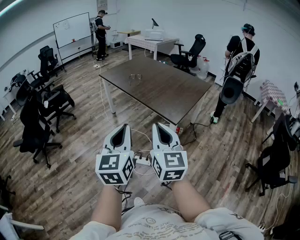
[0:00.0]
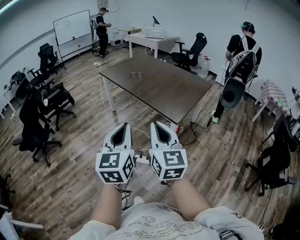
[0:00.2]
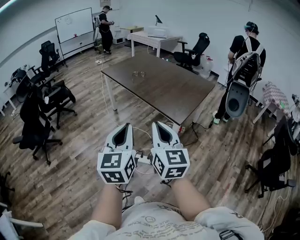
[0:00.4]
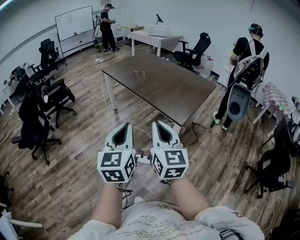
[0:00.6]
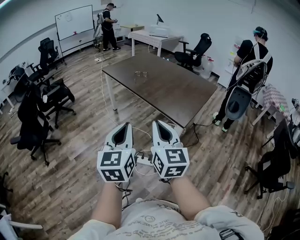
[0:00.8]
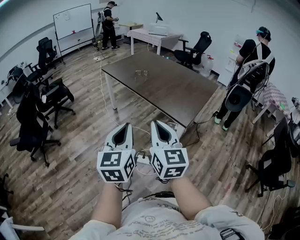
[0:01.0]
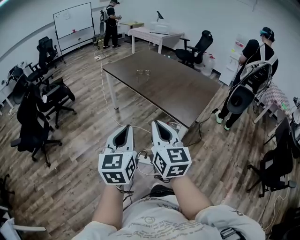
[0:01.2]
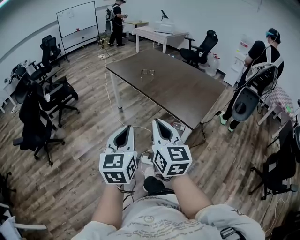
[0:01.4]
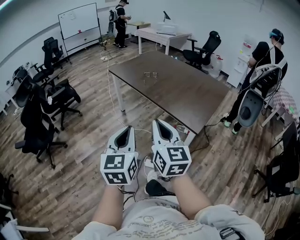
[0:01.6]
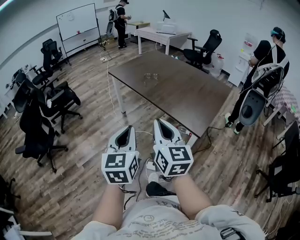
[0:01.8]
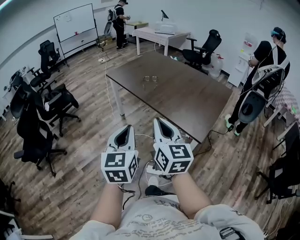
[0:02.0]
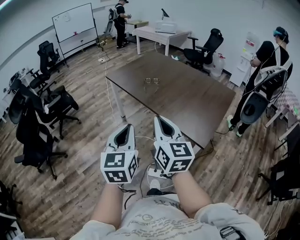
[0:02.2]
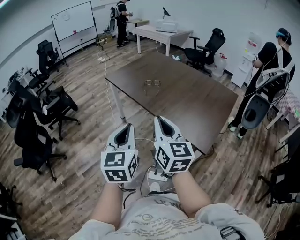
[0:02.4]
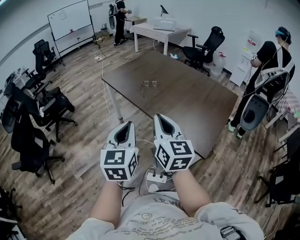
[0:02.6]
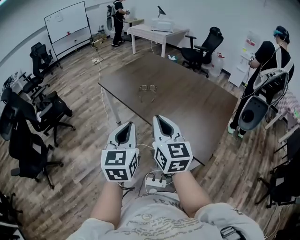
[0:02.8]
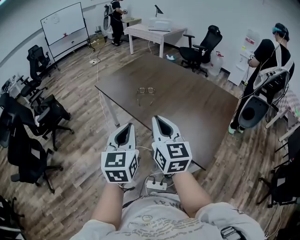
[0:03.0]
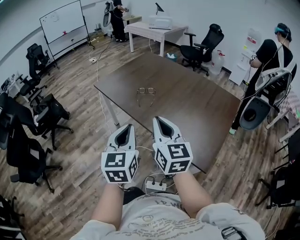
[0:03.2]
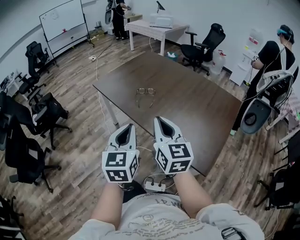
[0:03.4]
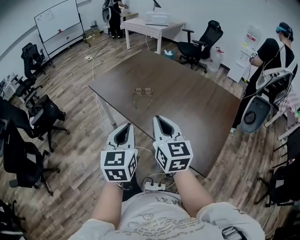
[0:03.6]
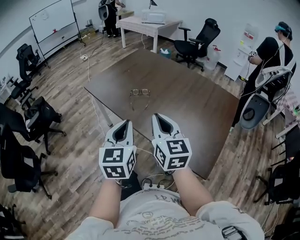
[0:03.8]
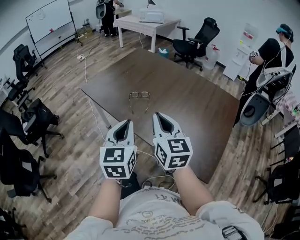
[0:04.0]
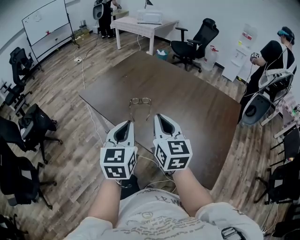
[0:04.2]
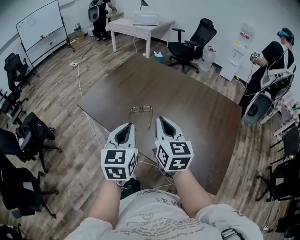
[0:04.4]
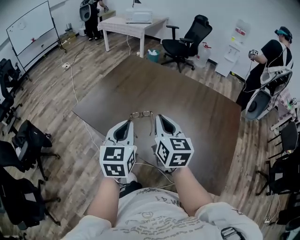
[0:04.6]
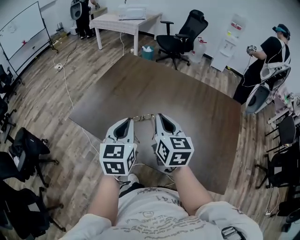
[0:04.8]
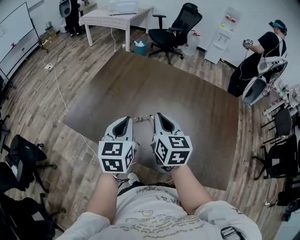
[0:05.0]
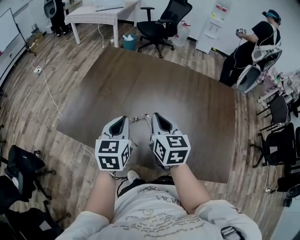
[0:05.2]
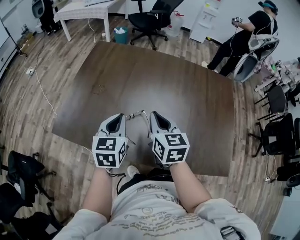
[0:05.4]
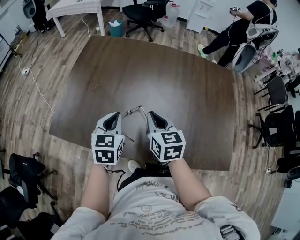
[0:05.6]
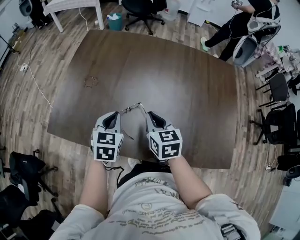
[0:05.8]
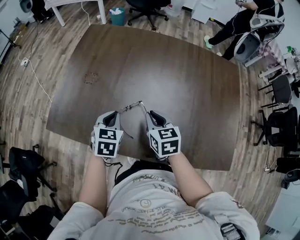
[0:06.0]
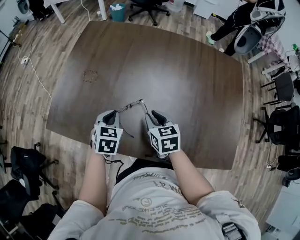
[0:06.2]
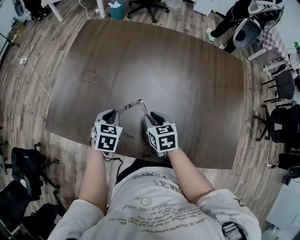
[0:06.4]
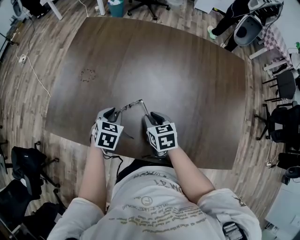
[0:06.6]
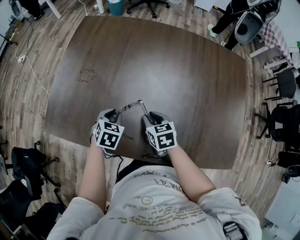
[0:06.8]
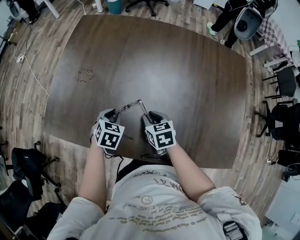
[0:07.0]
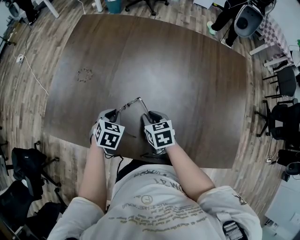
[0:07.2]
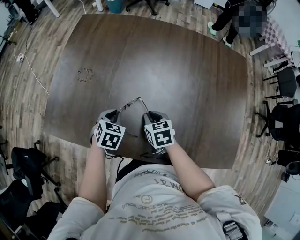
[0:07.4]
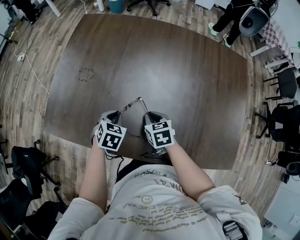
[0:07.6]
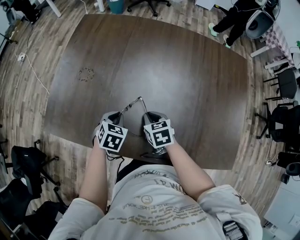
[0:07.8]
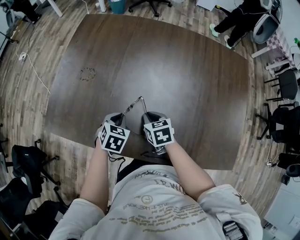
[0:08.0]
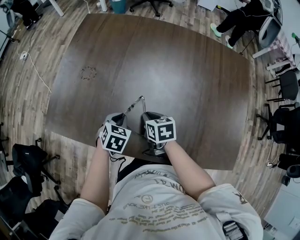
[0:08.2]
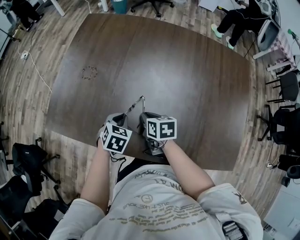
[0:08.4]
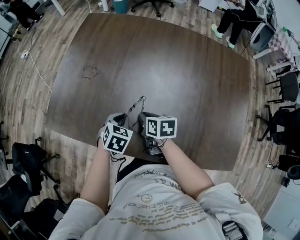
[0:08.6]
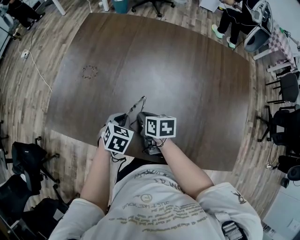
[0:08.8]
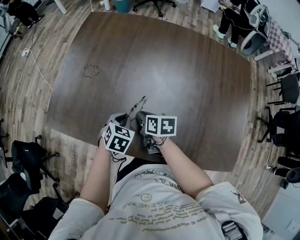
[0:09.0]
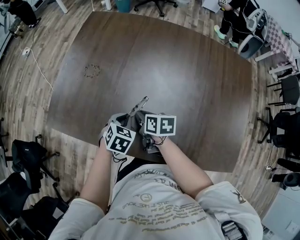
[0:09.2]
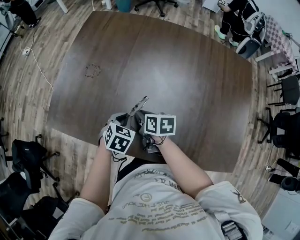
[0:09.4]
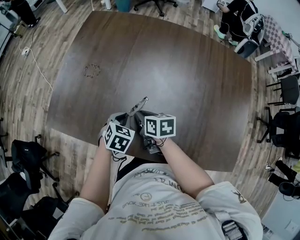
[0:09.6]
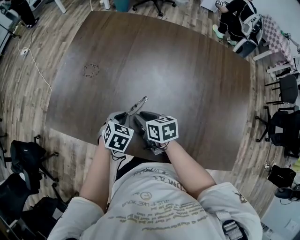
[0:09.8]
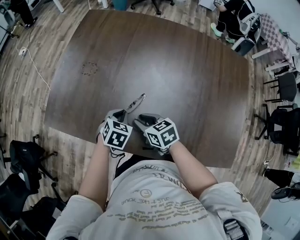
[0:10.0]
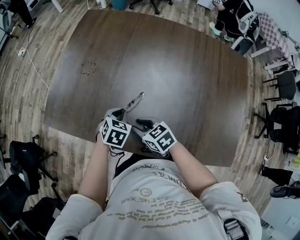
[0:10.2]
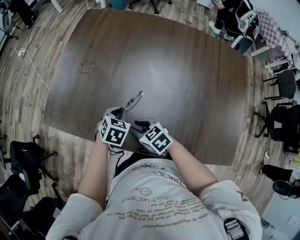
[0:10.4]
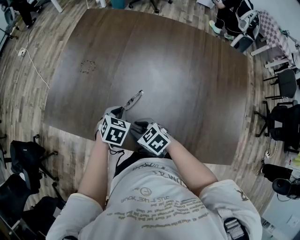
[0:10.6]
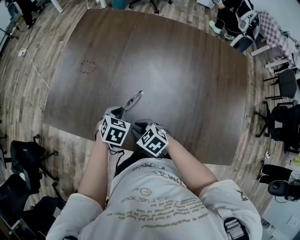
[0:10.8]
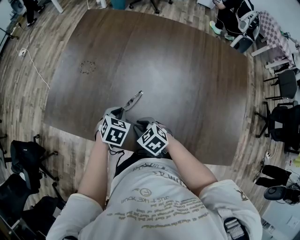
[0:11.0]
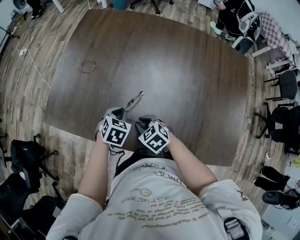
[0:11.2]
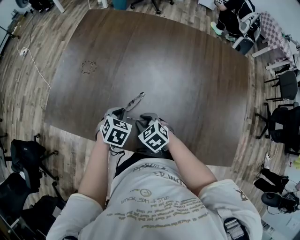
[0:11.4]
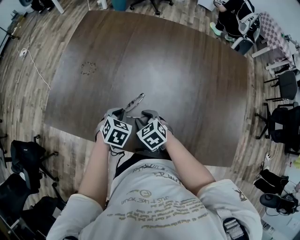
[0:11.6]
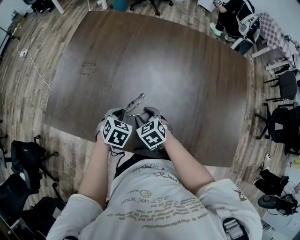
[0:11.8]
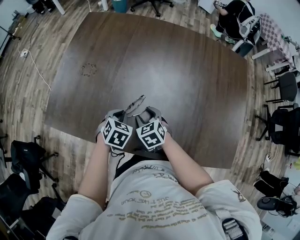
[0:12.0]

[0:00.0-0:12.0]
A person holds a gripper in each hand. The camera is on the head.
0:00.0 to 0:01.6: Both grippers travel together forward and to the left, some 20 cm.
0:01.6 to 0:03.0: The two grippers go roughly 35 cm forward.
0:03.0 to 0:04.4: The grippers both shift forward by approximately 25 cm.
0:04.4 to 0:06.0: The left gripper is displaced forward and downward by approximately 30 cm, and changes its angle by some 40 degrees. The right gripper shifts roughly 25 cm downward and forward, and turns by approximately 30 degrees.
0:06.0 to 0:07.6: The two grippers go about 10 cm downward.
0:07.6 to 0:09.0: The right gripper turns by roughly 30 degrees.
0:09.0 to 0:10.4: The right gripper shifts some 5 cm backward, rotates around the line of its fingers by about 40 degrees, counterclockwise from behind, and opens up.
0:10.4 to 0:12.0: The right gripper is displaced forward and to the right by about 10 cm, and rotates approximately 30 degrees.

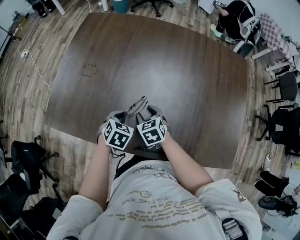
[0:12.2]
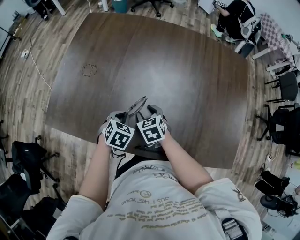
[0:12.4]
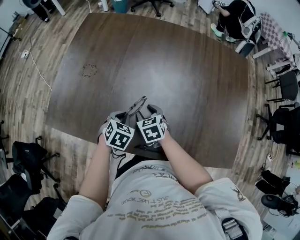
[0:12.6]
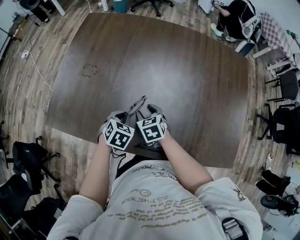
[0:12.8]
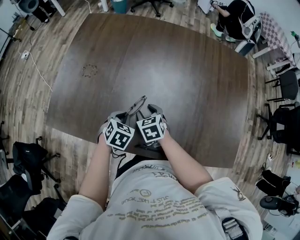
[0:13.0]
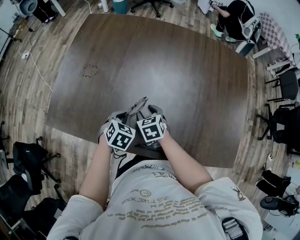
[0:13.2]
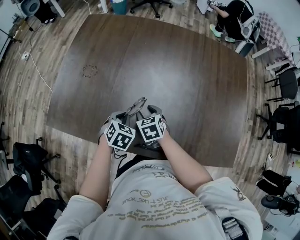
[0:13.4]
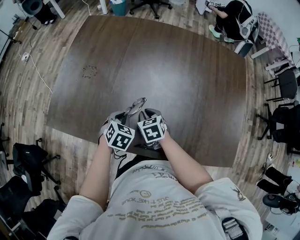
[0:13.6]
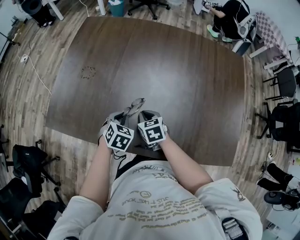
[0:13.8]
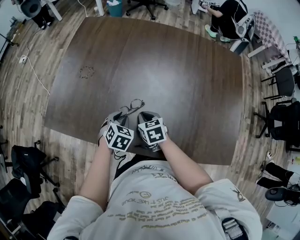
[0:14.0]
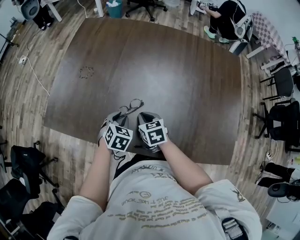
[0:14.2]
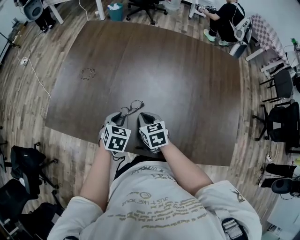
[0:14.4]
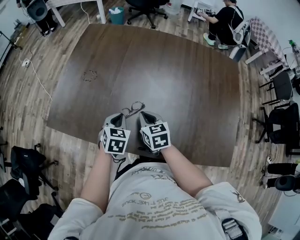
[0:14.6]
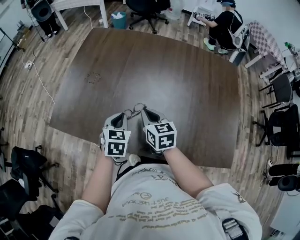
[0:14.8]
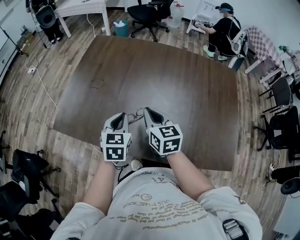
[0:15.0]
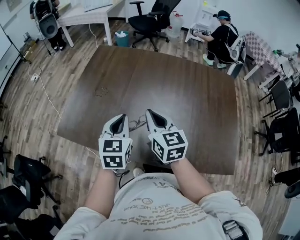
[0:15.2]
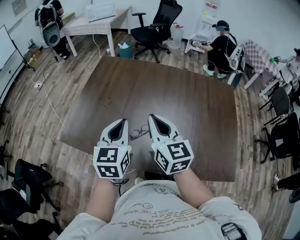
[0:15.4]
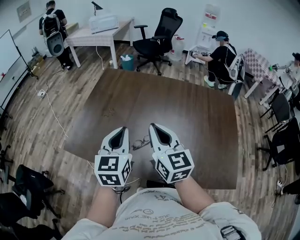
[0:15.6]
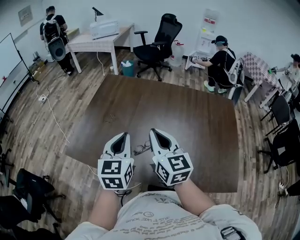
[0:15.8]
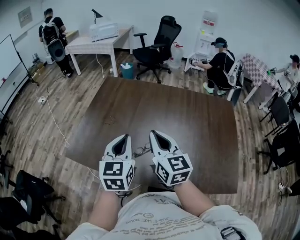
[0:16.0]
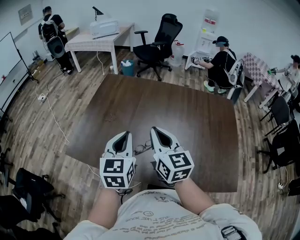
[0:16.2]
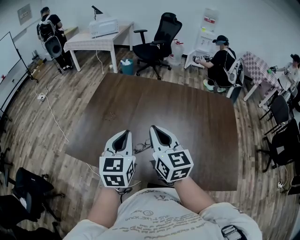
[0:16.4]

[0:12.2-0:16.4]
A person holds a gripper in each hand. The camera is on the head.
0:12.2 to 0:13.6: The right gripper closes up.
0:13.6 to 0:15.0: Both grippers travel together upward, about 15 cm. The left gripper rotates some 30 degrees, and opens, then closes again. Meanwhile the right gripper angles its fingers upward, by some 30 degrees.
0:15.0 to 0:16.4: Both grippers move upward, about 15 cm.

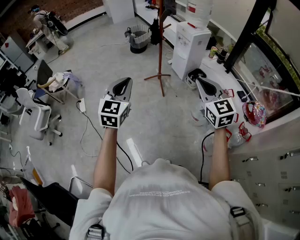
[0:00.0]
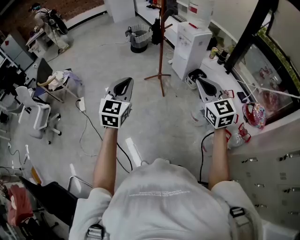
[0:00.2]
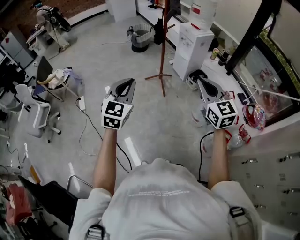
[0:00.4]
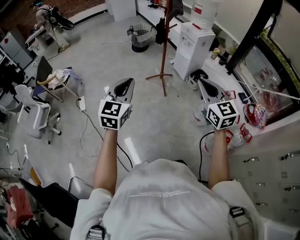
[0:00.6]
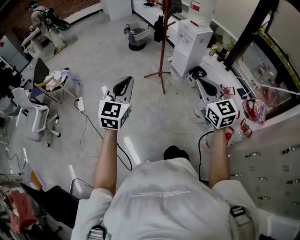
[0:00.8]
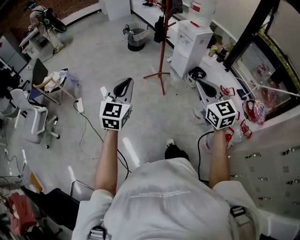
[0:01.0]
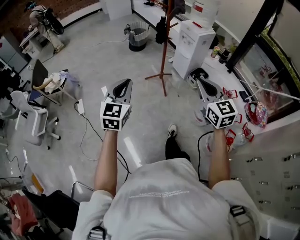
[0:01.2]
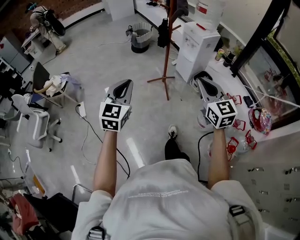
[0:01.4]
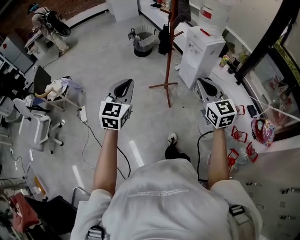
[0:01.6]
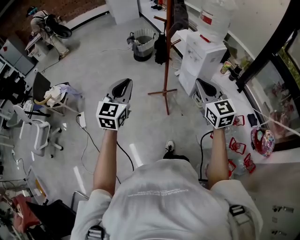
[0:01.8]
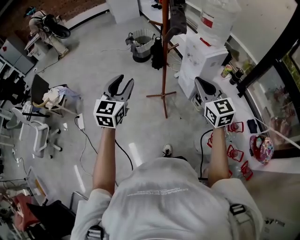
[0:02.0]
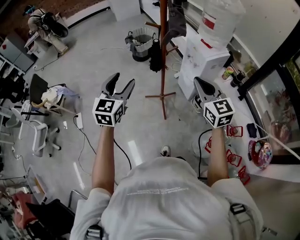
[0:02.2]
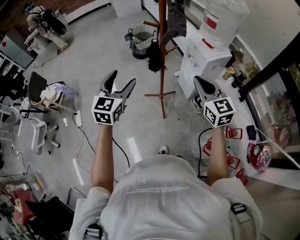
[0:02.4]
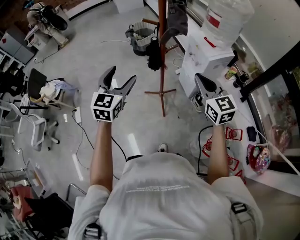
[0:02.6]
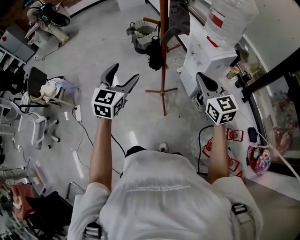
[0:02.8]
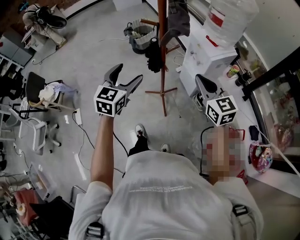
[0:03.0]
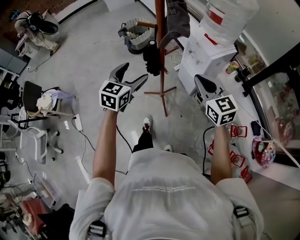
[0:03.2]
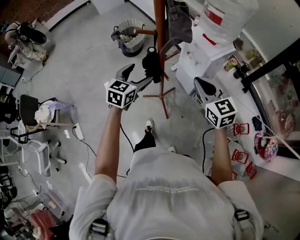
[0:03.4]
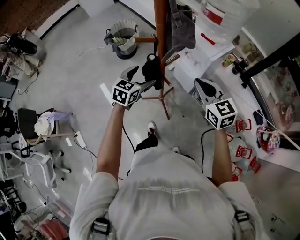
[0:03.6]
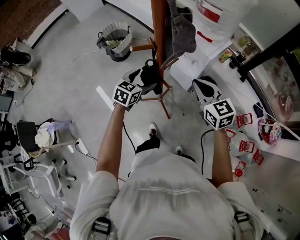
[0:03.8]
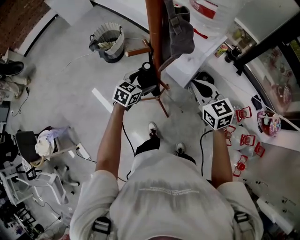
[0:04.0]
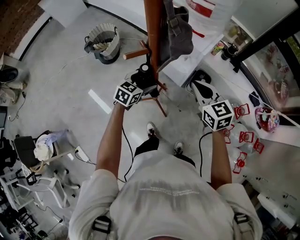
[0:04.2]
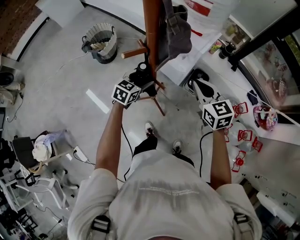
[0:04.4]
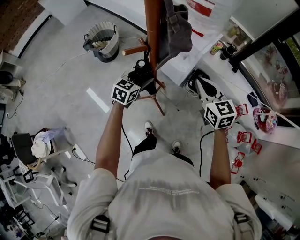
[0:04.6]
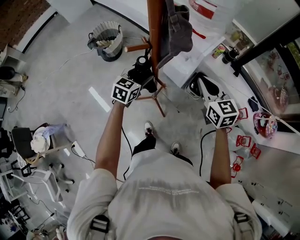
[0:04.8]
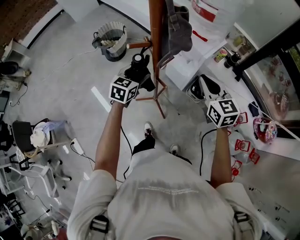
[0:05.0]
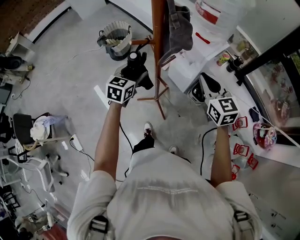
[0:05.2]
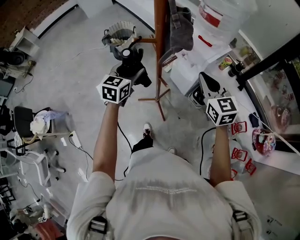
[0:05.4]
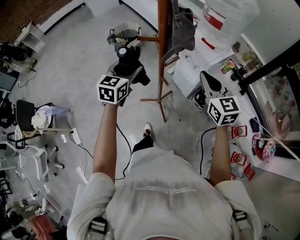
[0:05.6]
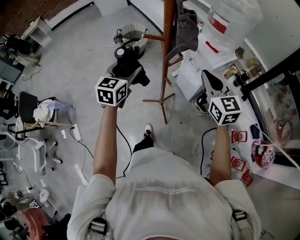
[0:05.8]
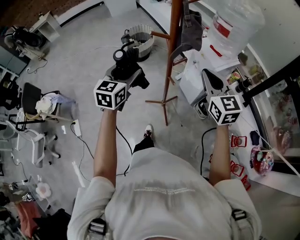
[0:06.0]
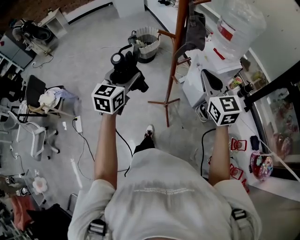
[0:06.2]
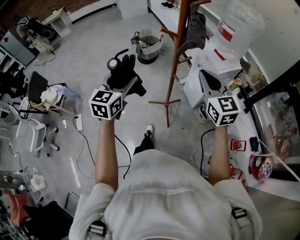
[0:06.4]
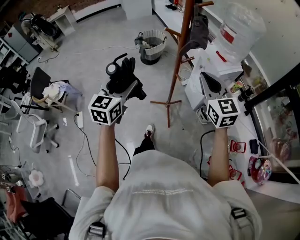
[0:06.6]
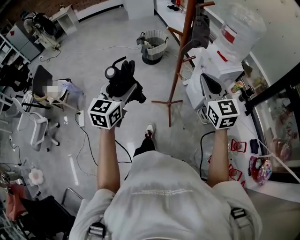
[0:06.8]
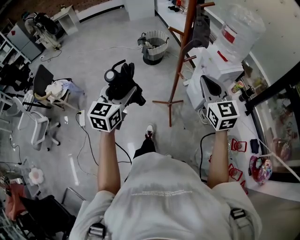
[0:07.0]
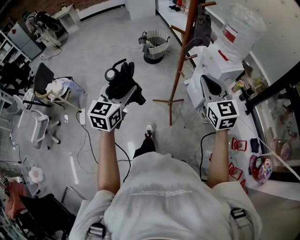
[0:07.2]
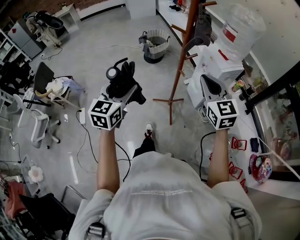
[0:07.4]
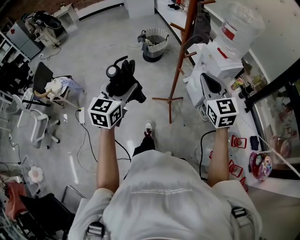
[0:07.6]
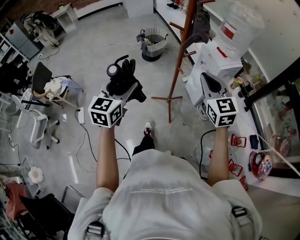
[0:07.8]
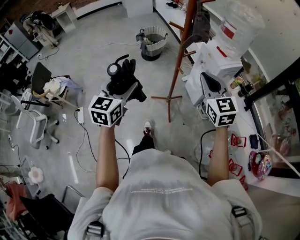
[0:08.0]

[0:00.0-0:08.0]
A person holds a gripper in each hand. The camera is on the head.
0:00.0 to 0:01.6: The two grippers go about 20 cm forward.
0:01.6 to 0:03.2: The grippers both shift forward by about 35 cm. The left gripper opens up.
0:03.2 to 0:04.8: The right gripper changes place by some 10 cm, and changes its angle by roughly 20 degrees. The left gripper shifts by roughly 20 cm, and changes its angle by some 30 degrees.
0:04.8 to 0:06.4: The left gripper shifts by some 30 cm, and turns by about 40 degrees, while the right gripper shifts some 10 cm upward, and changes its angle by roughly 30 degrees.
0:06.4 to 0:08.0: The left gripper goes approximately 10 cm backward, while the right gripper is displaced backward by roughly 5 cm.
